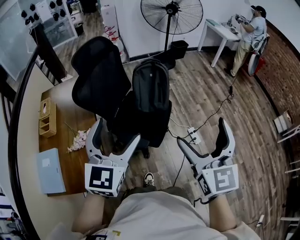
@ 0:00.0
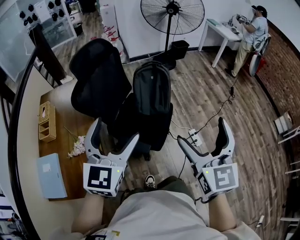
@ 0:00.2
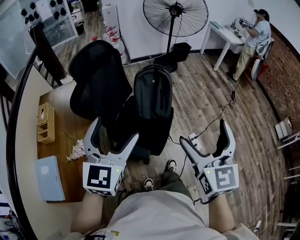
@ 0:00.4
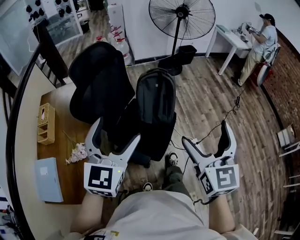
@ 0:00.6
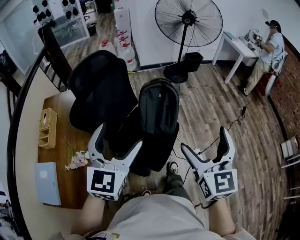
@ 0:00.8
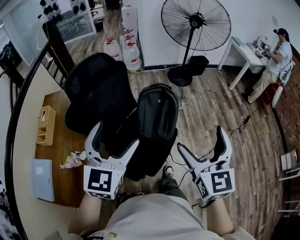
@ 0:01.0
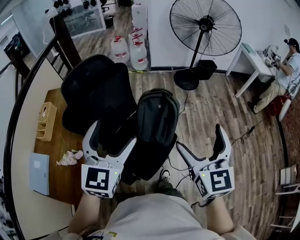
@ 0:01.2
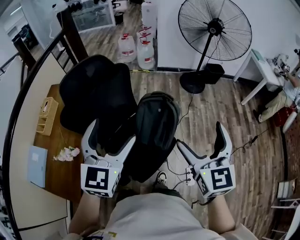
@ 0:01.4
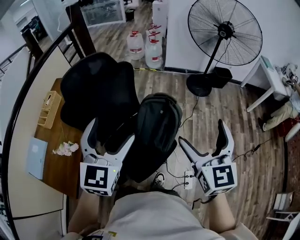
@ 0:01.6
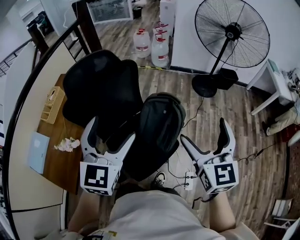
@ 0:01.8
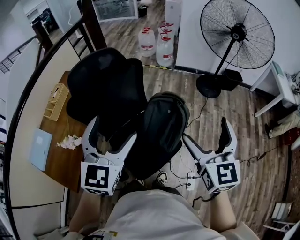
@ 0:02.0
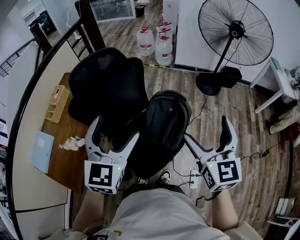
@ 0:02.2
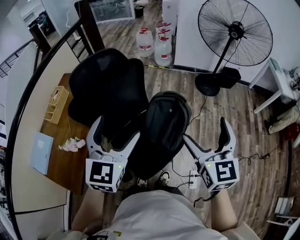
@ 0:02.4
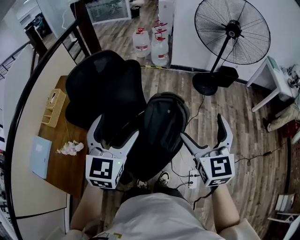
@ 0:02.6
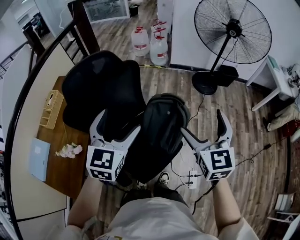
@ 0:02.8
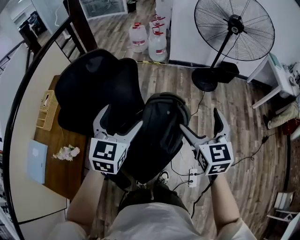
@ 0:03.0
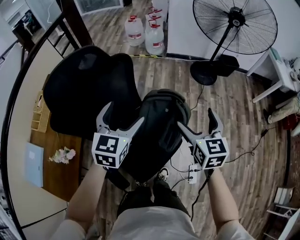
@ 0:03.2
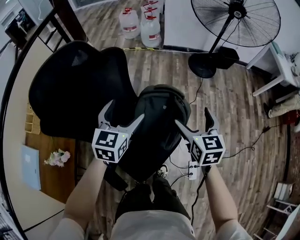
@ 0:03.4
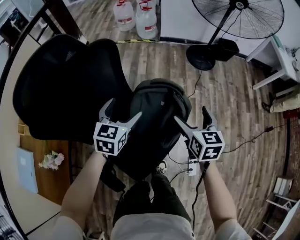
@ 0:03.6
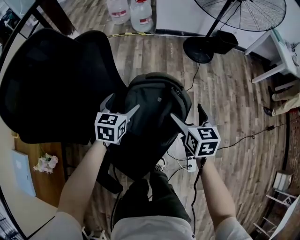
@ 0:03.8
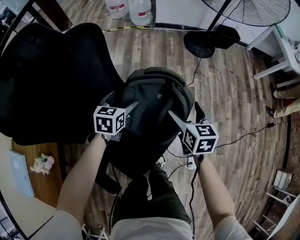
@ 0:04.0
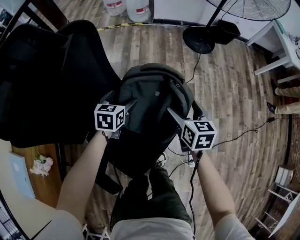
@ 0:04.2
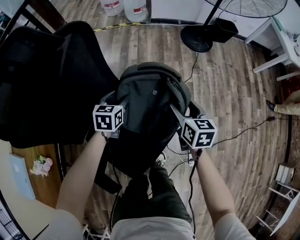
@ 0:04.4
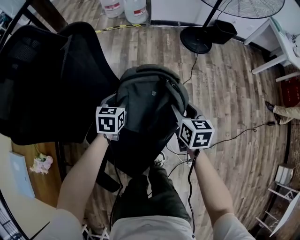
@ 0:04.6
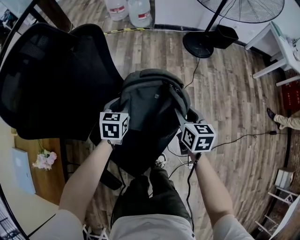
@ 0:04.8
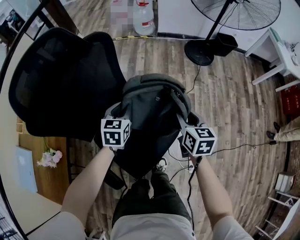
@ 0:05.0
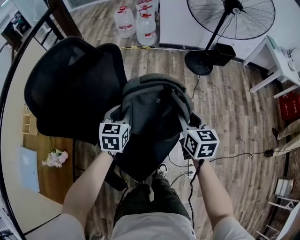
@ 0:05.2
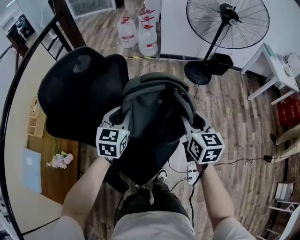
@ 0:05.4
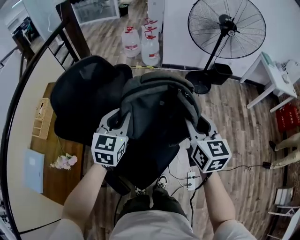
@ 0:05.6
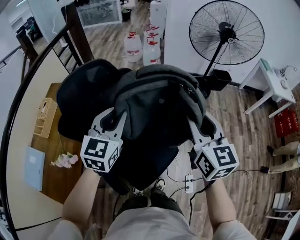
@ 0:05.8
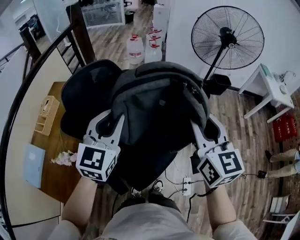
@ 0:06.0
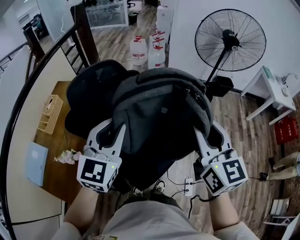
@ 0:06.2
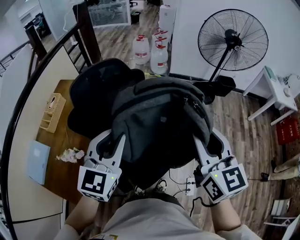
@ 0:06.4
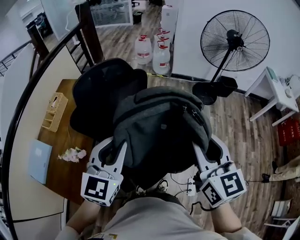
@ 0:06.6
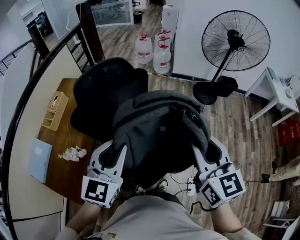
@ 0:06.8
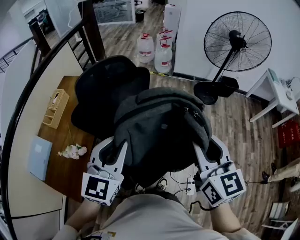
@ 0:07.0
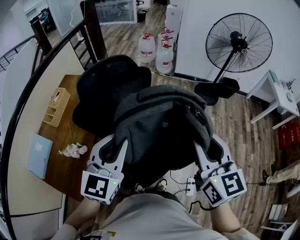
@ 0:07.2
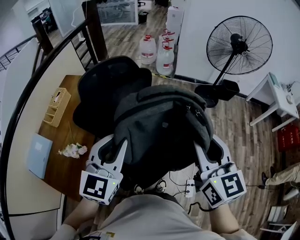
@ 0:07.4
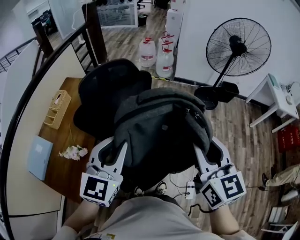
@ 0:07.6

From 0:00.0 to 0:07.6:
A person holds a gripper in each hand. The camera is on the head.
From 0:00.0 to 0:01.6: The left gripper changes place by some 35 cm, and swivels roughly 30 degrees, while the right gripper shifts by some 40 cm, and changes its angle by approximately 20 degrees.
From 0:01.6 to 0:03.0: The two grippers go approximately 15 cm forward and downward.
From 0:03.0 to 0:04.6: Both grippers travel together downward, about 35 cm. The left gripper rotates some 30 degrees, and closes, while the right gripper swivels roughly 30 degrees, and closes its fingers.
From 0:04.6 to 0:06.0: Both grippers travel together upward, approximately 50 cm. The left gripper tilts its fingers some 40 degrees upward; the right gripper tips its fingers upward by some 30 degrees.
From 0:06.0 to 0:07.6: Both grippers travel together backward, approximately 10 cm.

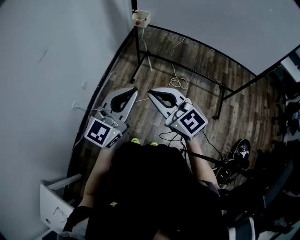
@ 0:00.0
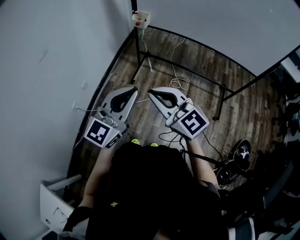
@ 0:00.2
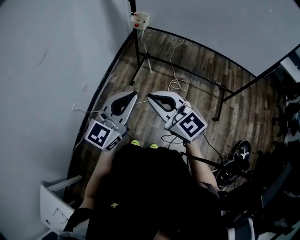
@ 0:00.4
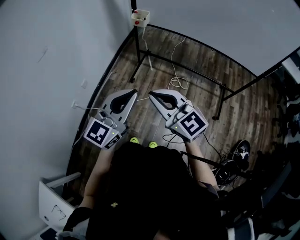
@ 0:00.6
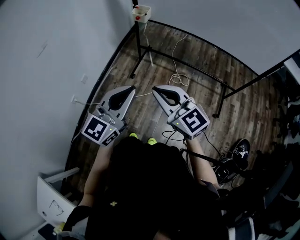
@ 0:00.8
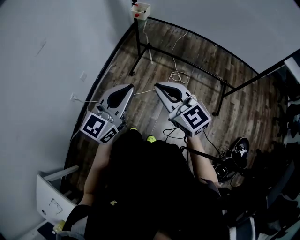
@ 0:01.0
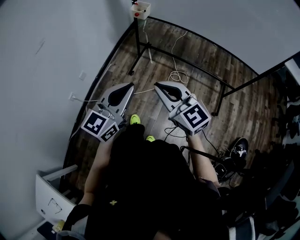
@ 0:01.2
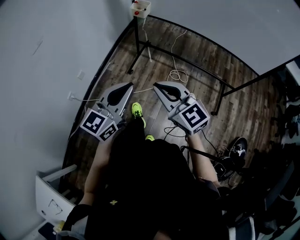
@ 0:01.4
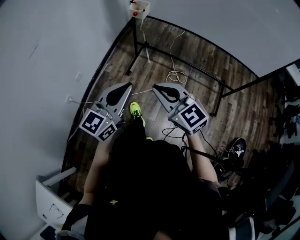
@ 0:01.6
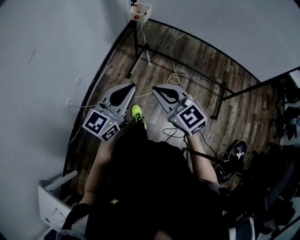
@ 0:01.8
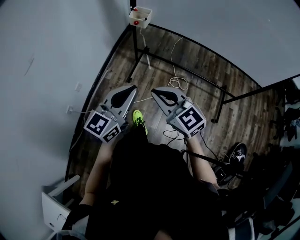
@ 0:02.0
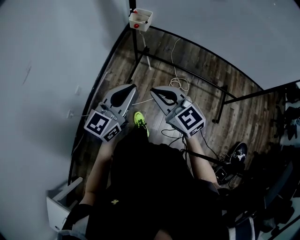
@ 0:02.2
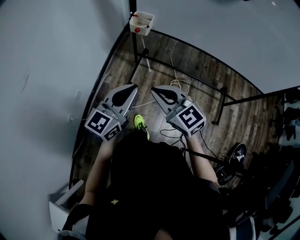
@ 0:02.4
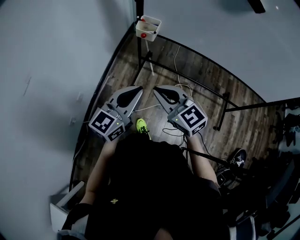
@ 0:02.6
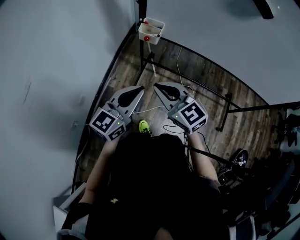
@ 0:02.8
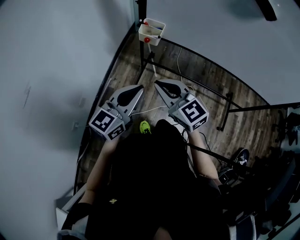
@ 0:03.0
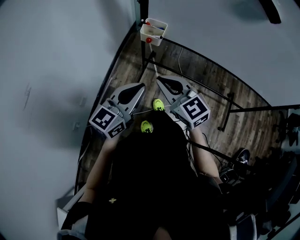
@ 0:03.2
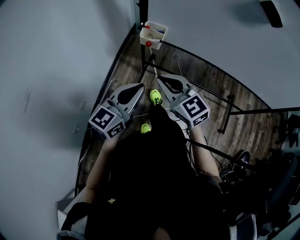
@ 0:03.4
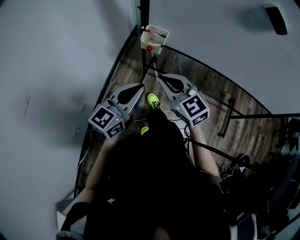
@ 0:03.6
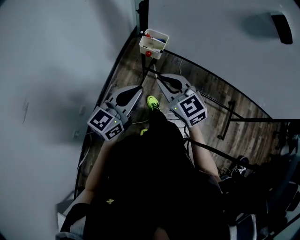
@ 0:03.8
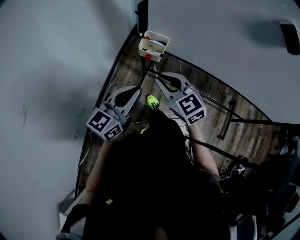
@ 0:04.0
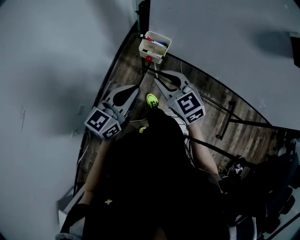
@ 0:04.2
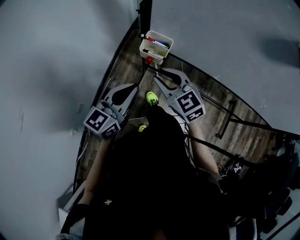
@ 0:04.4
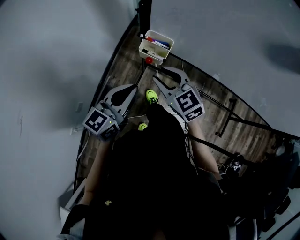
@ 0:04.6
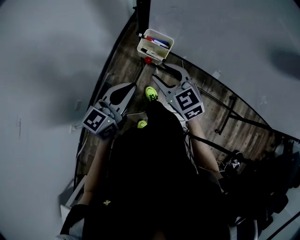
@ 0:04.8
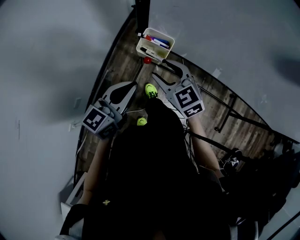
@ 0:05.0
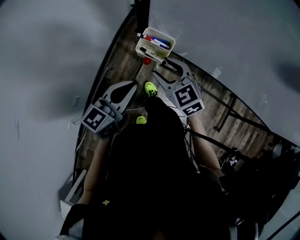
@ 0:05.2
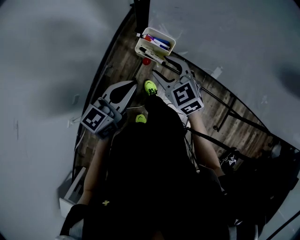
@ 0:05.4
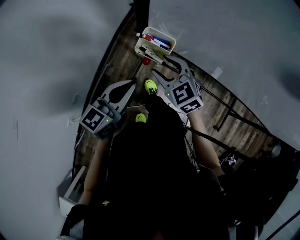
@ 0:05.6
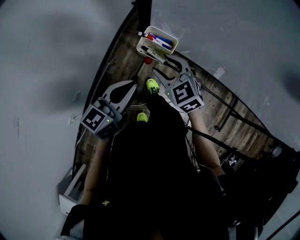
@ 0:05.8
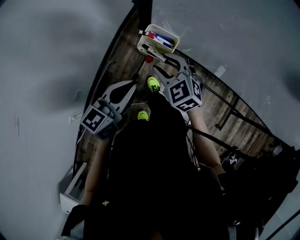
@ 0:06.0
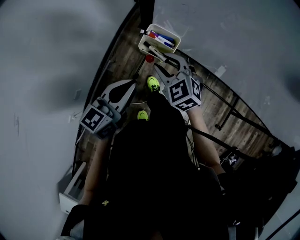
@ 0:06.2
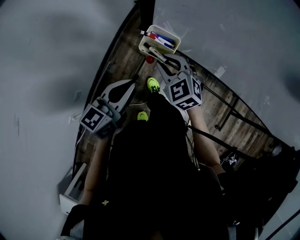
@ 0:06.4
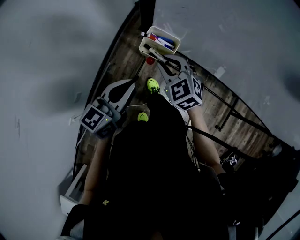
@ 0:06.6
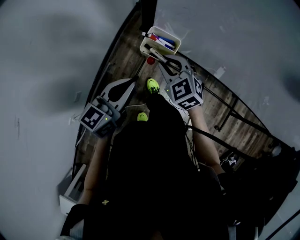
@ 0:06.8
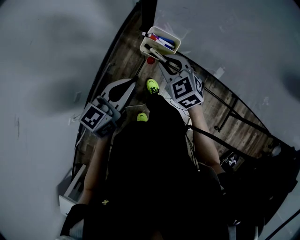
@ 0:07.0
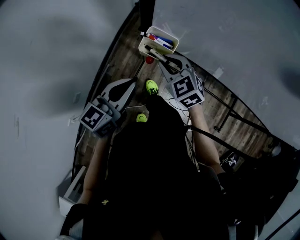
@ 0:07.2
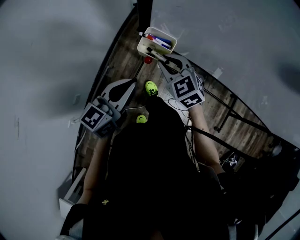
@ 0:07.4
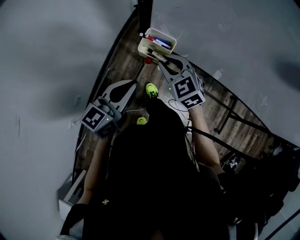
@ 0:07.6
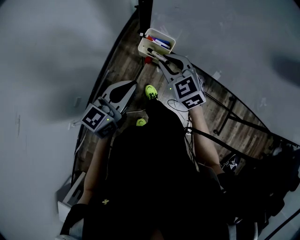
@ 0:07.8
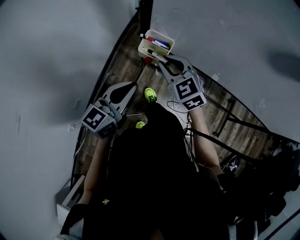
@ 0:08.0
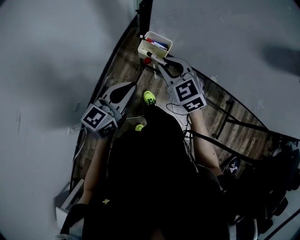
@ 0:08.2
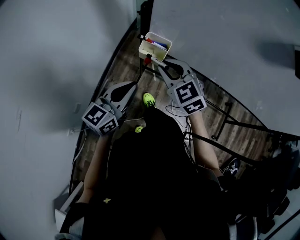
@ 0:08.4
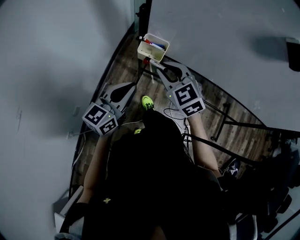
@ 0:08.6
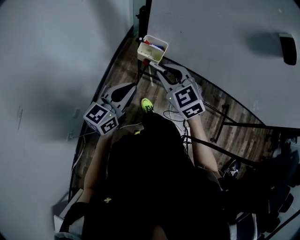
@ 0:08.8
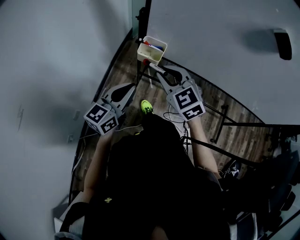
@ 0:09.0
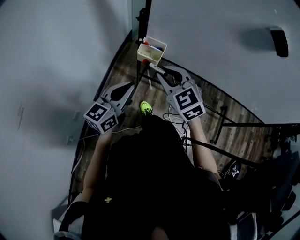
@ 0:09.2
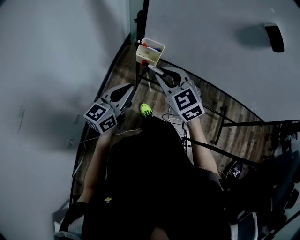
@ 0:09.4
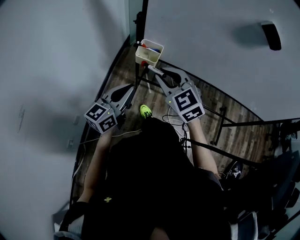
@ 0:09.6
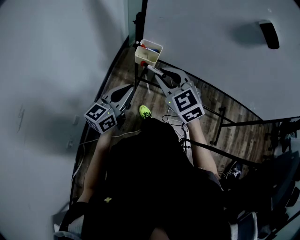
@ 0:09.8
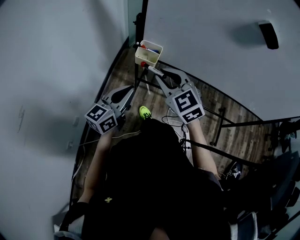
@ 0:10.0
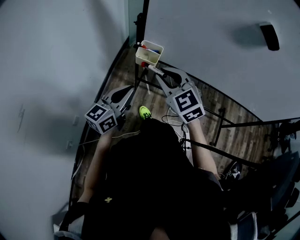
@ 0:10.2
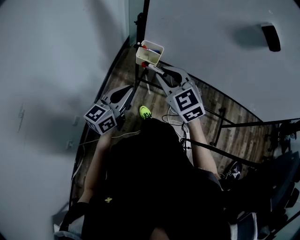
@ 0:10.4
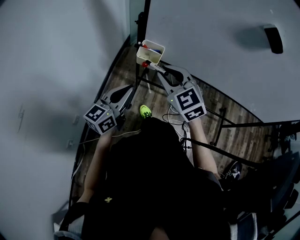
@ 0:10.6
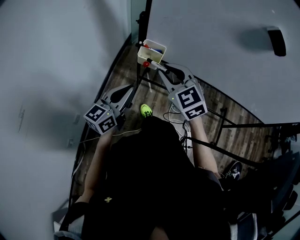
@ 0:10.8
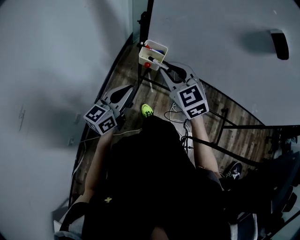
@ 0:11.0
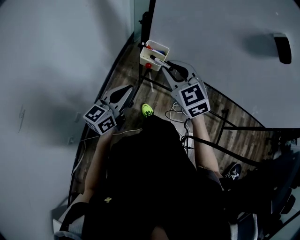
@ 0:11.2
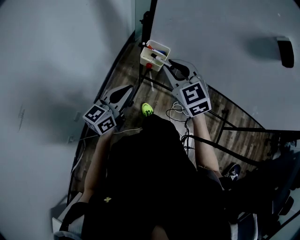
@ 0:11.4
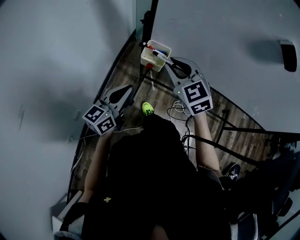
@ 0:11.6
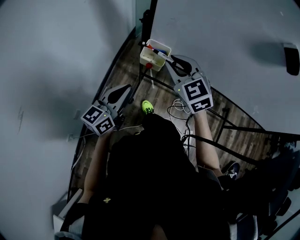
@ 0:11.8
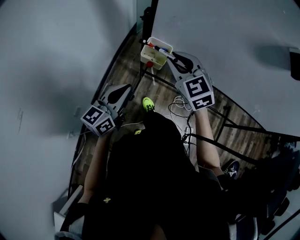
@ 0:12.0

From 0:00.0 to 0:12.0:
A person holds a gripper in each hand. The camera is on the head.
From 0:00.0 to 0:01.6: The left gripper goes approximately 10 cm forward and downward. Meanwhile the right gripper travels downward and forward by approximately 10 cm.
From 0:01.6 to 0:03.0: Both grippers travel together forward, approximately 30 cm.
From 0:03.0 to 0:04.4: The grippers both shift forward by approximately 15 cm. The right gripper opens up.
From 0:04.4 to 0:06.0: The right gripper travels forward and downward by approximately 10 cm.
From 0:06.0 to 0:07.6: The right gripper closes its fingers.
From 0:07.6 to 0:09.0: The right gripper heads backward and upward, covering some 10 cm.
From 0:09.0 to 0:10.4: The grippers move only a little.
From 0:10.4 to 0:12.0: The right gripper moves forward, approximately 10 cm.

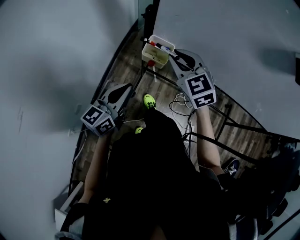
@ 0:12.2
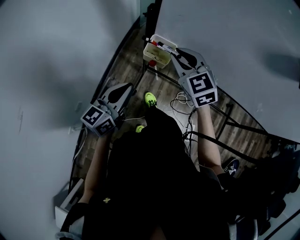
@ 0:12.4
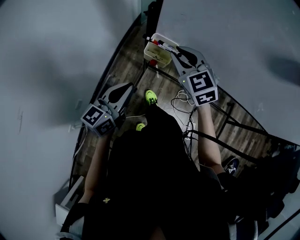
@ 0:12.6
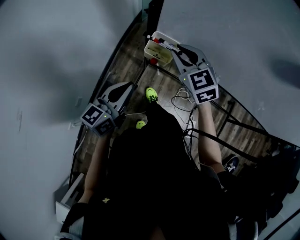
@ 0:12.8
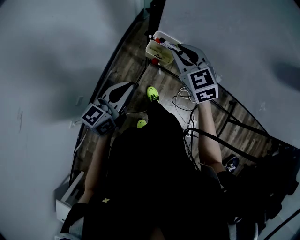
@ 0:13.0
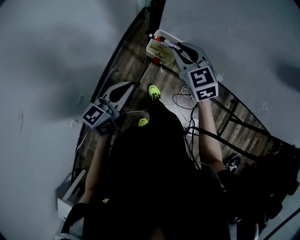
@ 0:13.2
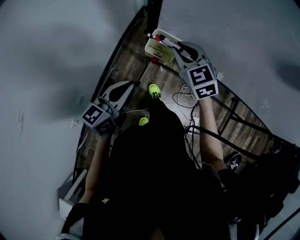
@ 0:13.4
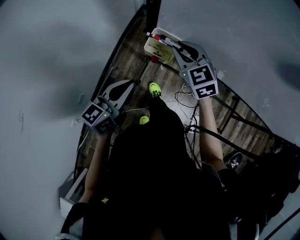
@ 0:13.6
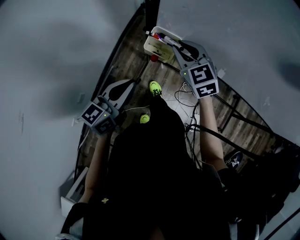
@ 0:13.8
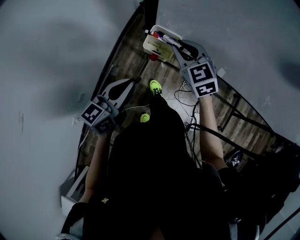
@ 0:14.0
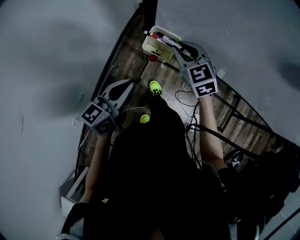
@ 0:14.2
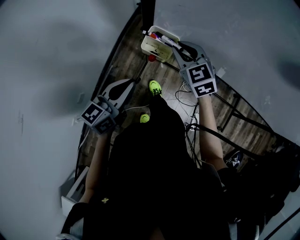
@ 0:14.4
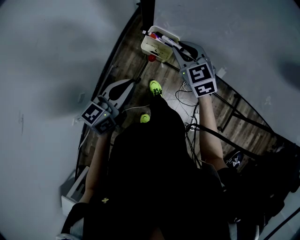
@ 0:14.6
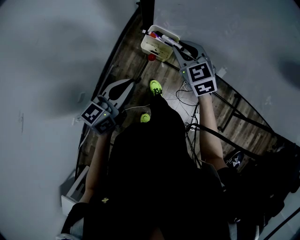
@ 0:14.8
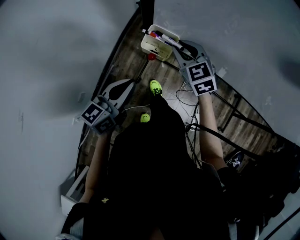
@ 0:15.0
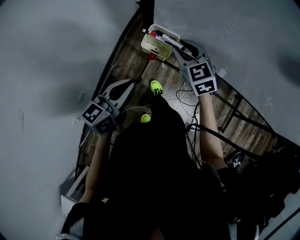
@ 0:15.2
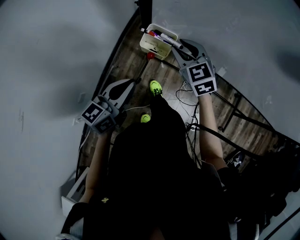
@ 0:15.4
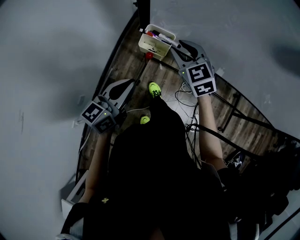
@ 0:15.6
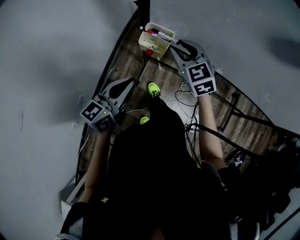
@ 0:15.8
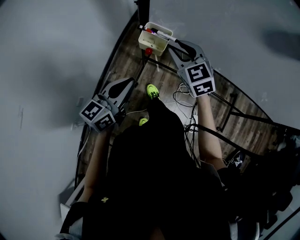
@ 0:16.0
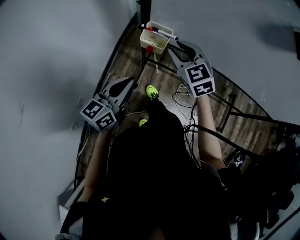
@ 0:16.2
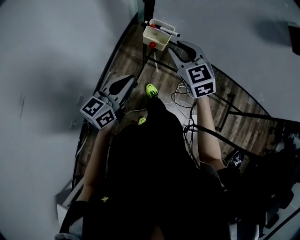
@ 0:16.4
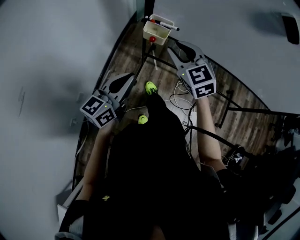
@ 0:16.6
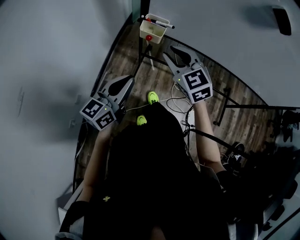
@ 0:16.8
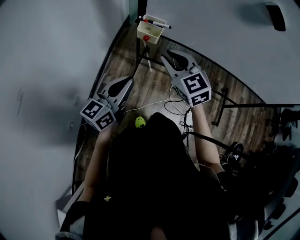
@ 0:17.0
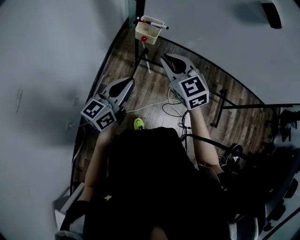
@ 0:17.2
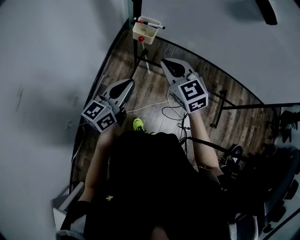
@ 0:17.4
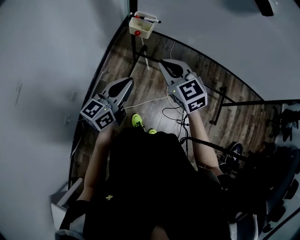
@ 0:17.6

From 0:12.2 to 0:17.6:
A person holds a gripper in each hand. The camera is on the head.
From 0:12.2 to 0:13.6: The right gripper goes roughly 5 cm downward.
From 0:13.6 to 0:15.0: The grippers make only small movements.
From 0:15.0 to 0:16.2: The left gripper goes about 5 cm backward, while the right gripper is displaced backward and upward by roughly 10 cm.
From 0:16.2 to 0:17.6: The right gripper travels backward by approximately 20 cm, and closes up; the left gripper heads backward and to the right, covering approximately 15 cm.
